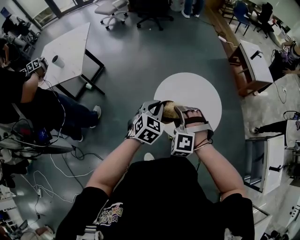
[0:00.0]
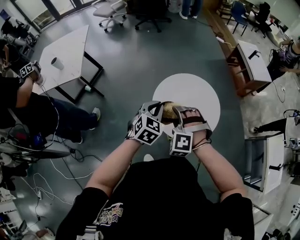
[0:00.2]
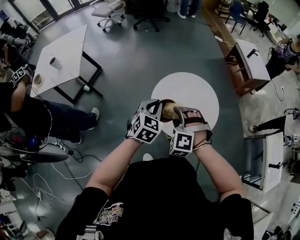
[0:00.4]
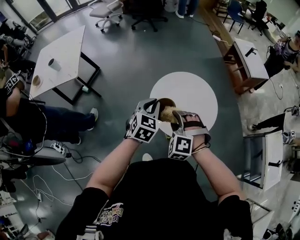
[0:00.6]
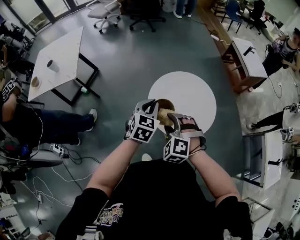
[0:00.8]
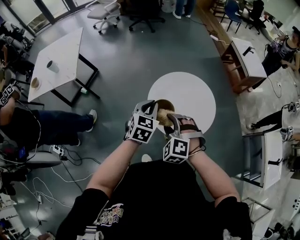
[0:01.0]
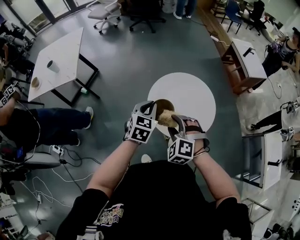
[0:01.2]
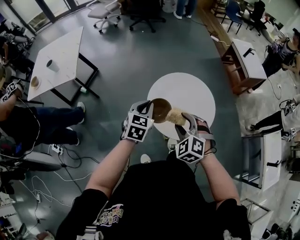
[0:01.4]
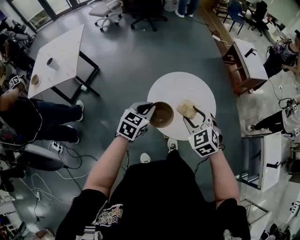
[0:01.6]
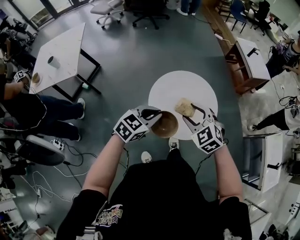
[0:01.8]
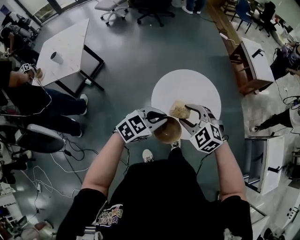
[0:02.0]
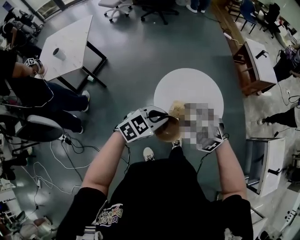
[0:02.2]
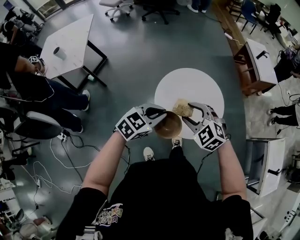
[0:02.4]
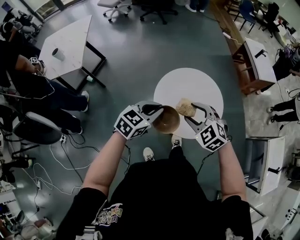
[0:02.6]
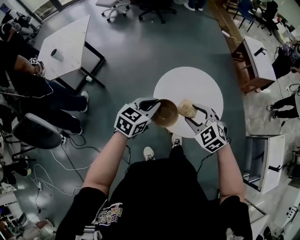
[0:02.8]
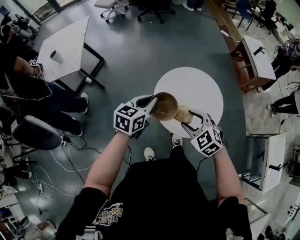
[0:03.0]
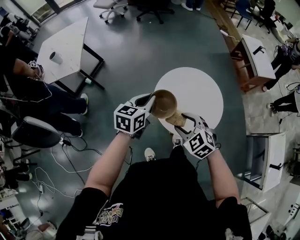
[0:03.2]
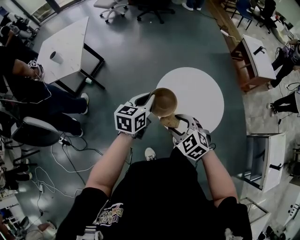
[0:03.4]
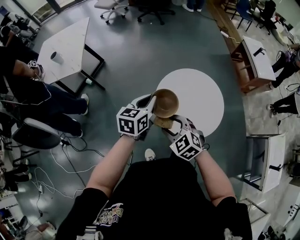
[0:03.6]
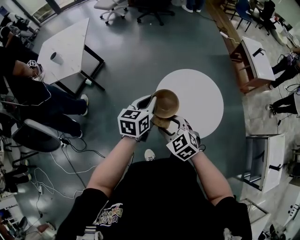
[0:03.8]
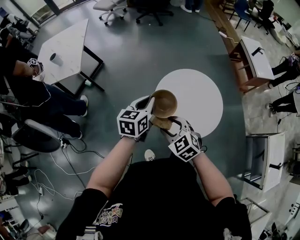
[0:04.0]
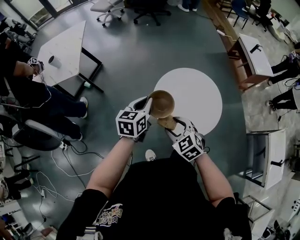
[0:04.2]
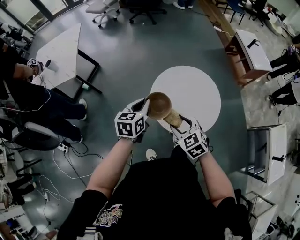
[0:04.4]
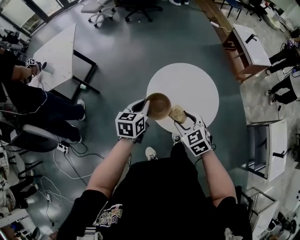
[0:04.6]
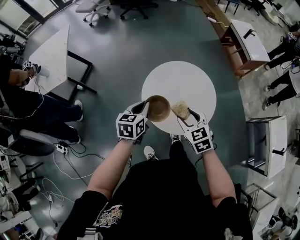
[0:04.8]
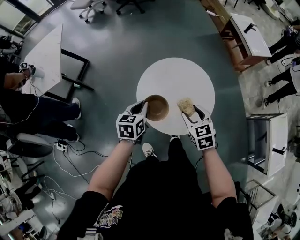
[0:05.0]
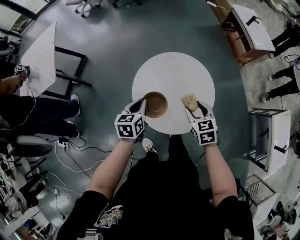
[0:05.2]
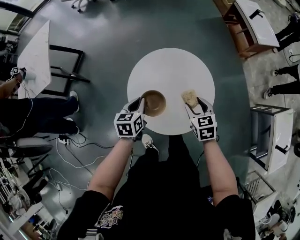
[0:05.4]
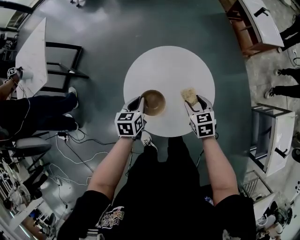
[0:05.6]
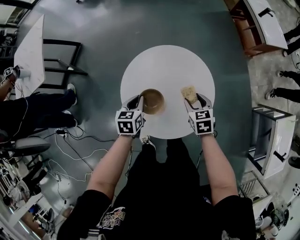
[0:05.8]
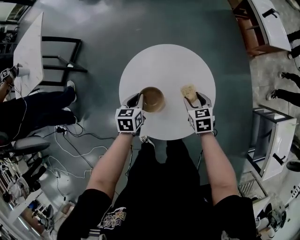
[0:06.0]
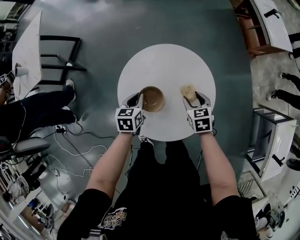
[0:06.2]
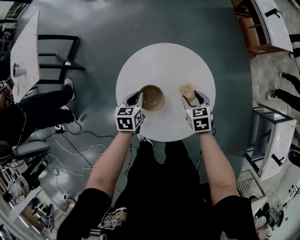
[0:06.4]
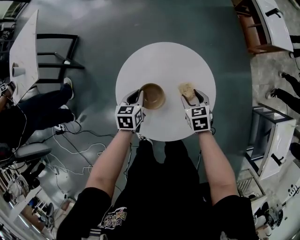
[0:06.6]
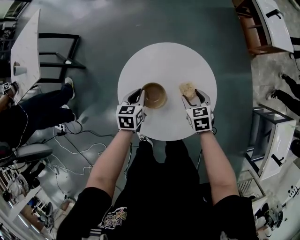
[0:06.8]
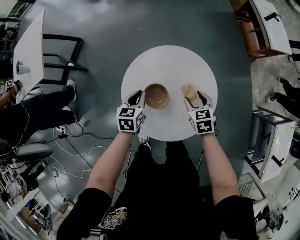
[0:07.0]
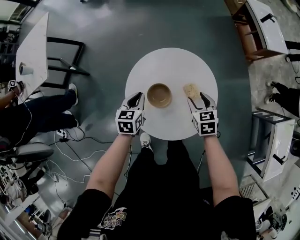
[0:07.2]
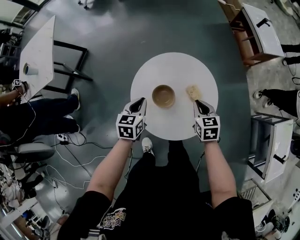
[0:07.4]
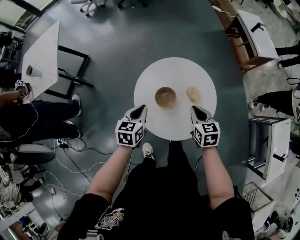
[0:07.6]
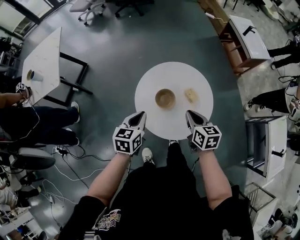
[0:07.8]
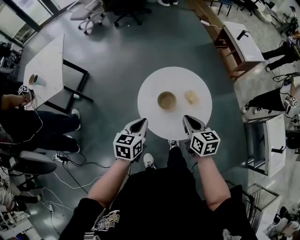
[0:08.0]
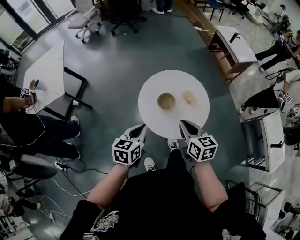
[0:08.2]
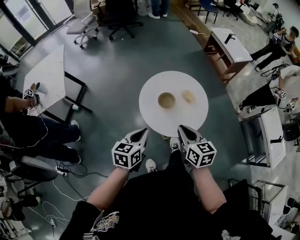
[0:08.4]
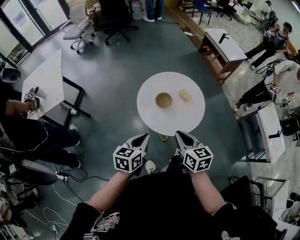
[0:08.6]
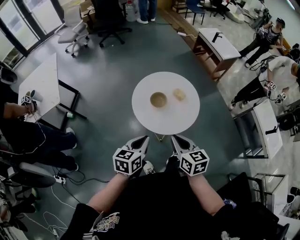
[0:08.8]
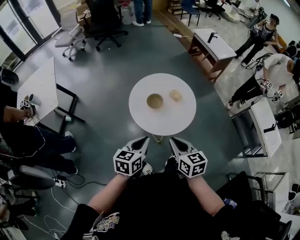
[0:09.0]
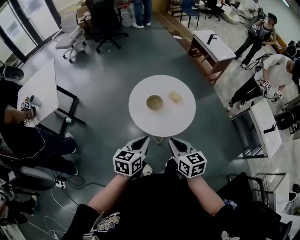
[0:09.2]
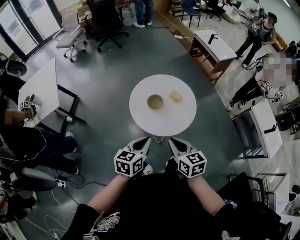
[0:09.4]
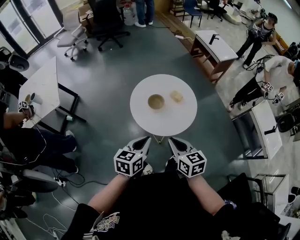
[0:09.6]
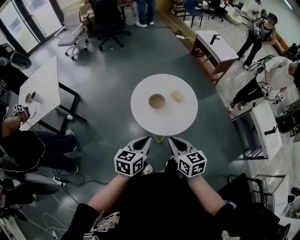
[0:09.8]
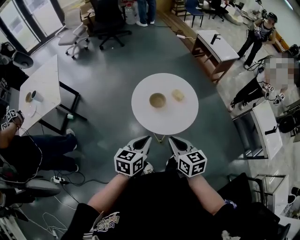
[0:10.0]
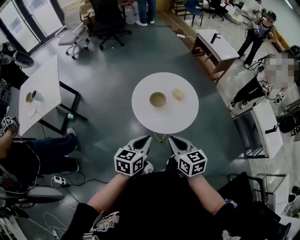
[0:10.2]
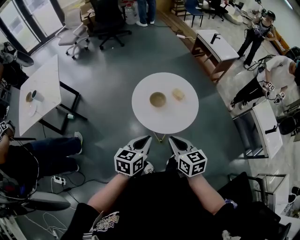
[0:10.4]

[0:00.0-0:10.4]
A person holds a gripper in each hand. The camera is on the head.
0:00.0 to 0:01.4: The right gripper shifts some 5 cm to the right, and rotates approximately 30 degrees.
0:01.4 to 0:03.0: The right gripper rotates approximately 20 degrees. The left gripper travels to the right and back again, about 5 cm each way, and swivels about 20 degrees.
0:03.0 to 0:04.4: The right gripper moves approximately 10 cm to the left and comes back.
0:04.4 to 0:06.0: The right gripper moves to the right, downward and forward, approximately 35 cm, and rotates some 30 degrees; the left gripper shifts some 25 cm downward and to the right, and changes its angle by approximately 20 degrees.
0:06.0 to 0:07.4: The grippers both shift upward by some 5 cm. The right gripper closes up.
0:07.4 to 0:09.0: The right gripper goes approximately 35 cm backward, upward and to the left, and rotates some 20 degrees; the left gripper goes some 30 cm backward and upward, and rotates some 20 degrees.
0:09.0 to 0:10.4: The grippers make only small movements.

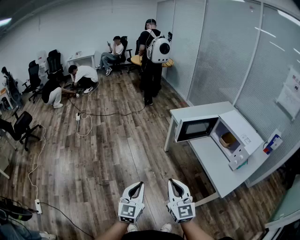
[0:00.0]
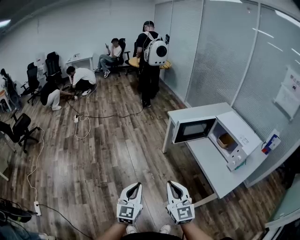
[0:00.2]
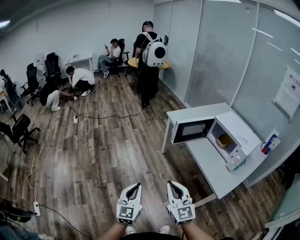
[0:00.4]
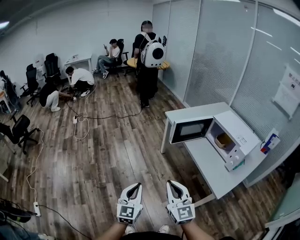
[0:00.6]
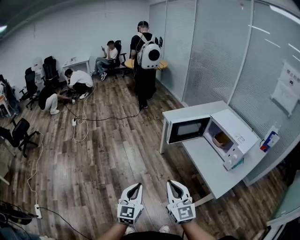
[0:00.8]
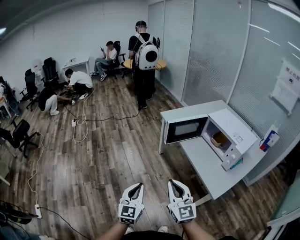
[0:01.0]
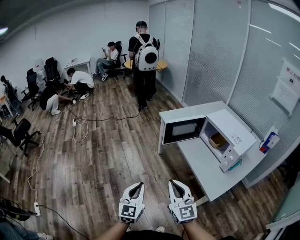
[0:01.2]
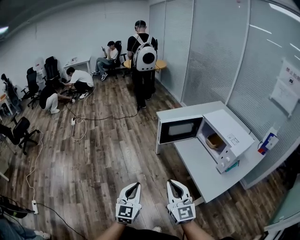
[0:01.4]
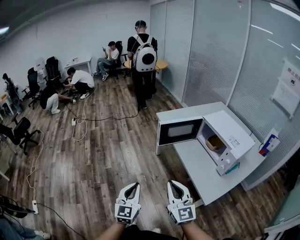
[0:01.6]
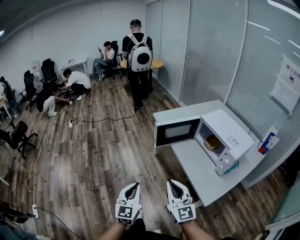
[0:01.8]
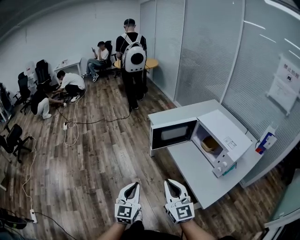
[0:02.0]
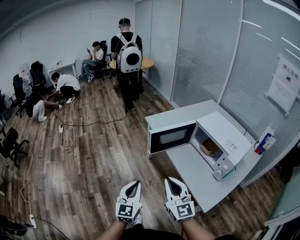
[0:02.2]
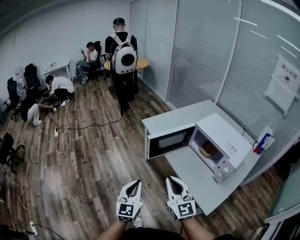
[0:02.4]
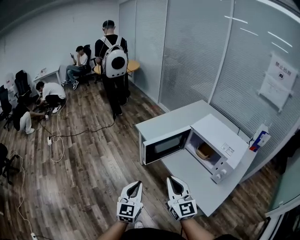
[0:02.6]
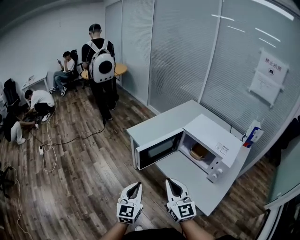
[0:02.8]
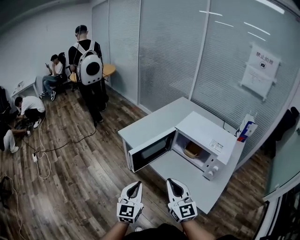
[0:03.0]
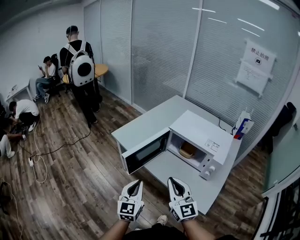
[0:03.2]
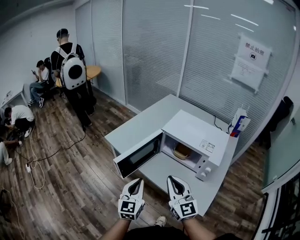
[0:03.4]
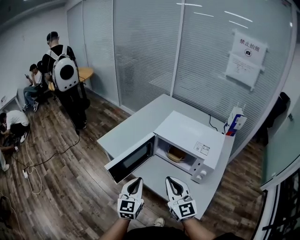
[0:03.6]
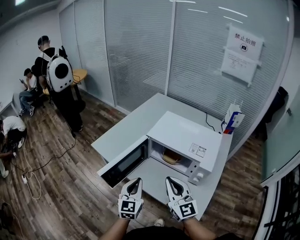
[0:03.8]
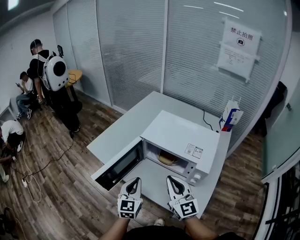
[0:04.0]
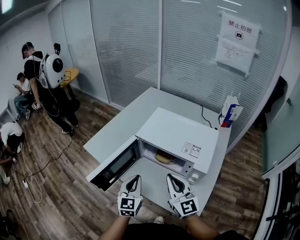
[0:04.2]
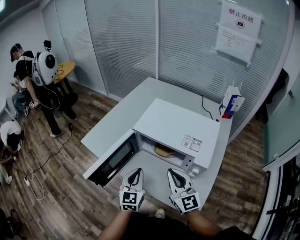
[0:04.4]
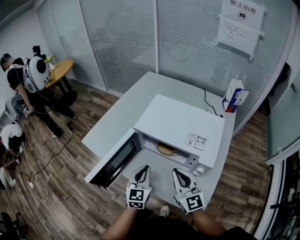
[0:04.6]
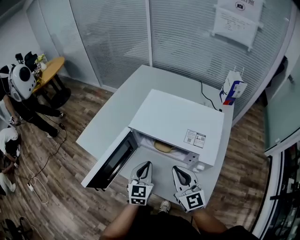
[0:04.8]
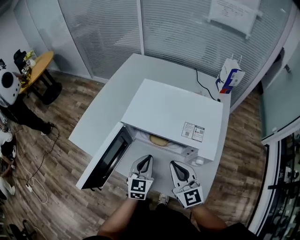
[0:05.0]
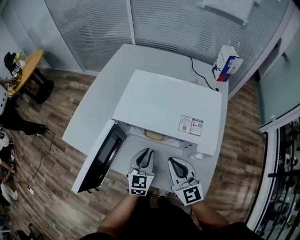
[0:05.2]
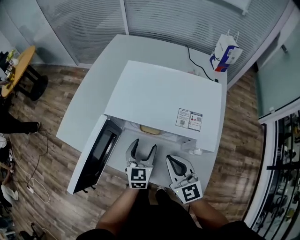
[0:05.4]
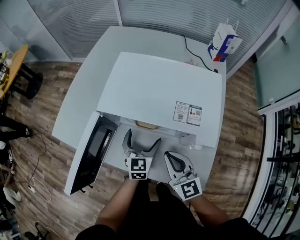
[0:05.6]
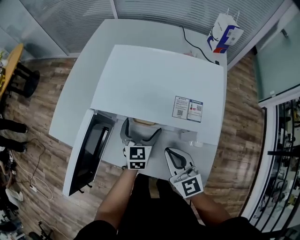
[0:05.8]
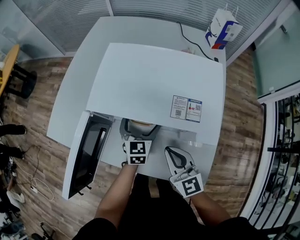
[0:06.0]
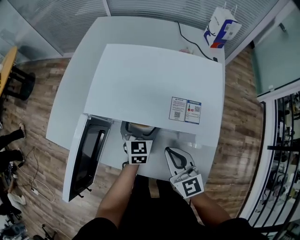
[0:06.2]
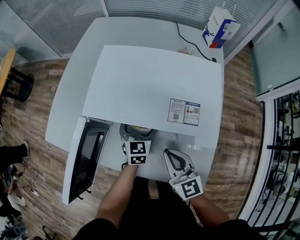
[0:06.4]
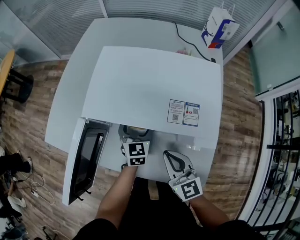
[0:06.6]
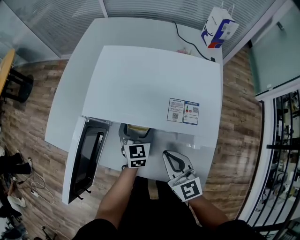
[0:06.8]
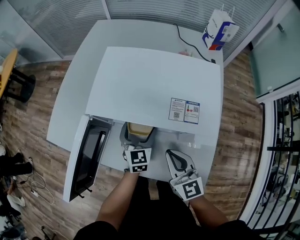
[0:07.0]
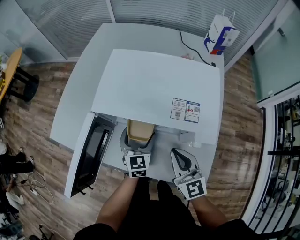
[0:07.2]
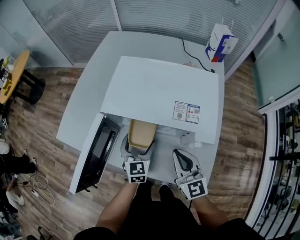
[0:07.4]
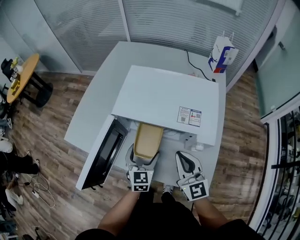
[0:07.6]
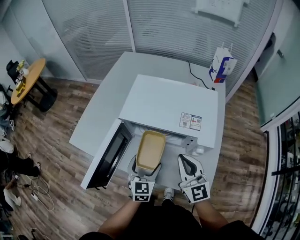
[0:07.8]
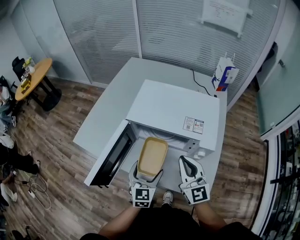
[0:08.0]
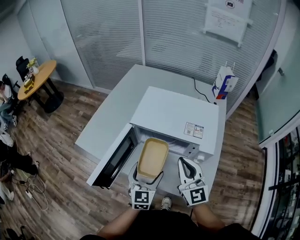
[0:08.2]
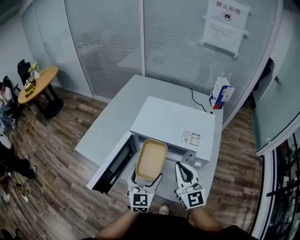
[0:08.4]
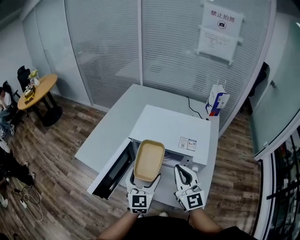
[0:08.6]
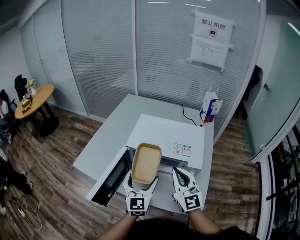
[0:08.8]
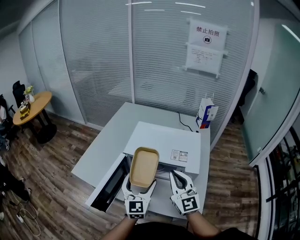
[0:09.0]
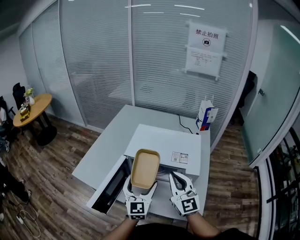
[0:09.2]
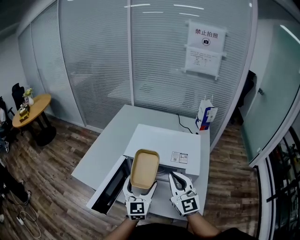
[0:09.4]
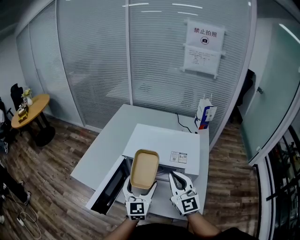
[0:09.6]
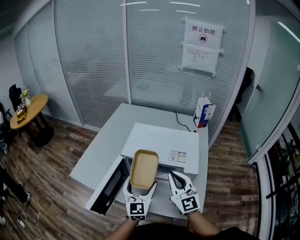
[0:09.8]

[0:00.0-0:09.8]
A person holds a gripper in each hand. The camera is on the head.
0:00.0 to 0:01.4: The two grippers go some 15 cm to the right.
0:01.4 to 0:02.8: Both grippers move forward, approximately 20 cm.
0:02.8 to 0:04.2: The left gripper shifts some 30 cm forward and to the right, while the right gripper shifts some 25 cm to the right and forward.
0:04.2 to 0:05.6: The left gripper heads forward, downward and to the right, covering about 20 cm, and opens its fingers, while the right gripper goes approximately 10 cm downward.
0:07.0 to 0:08.4: The right gripper shifts roughly 15 cm upward, and changes its angle by roughly 20 degrees; the left gripper shifts approximately 20 cm upward, backward and to the left.
0:08.4 to 0:09.8: The left gripper goes approximately 5 cm upward.

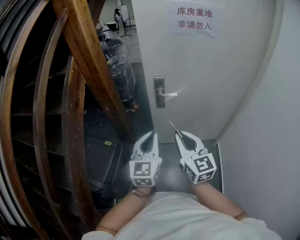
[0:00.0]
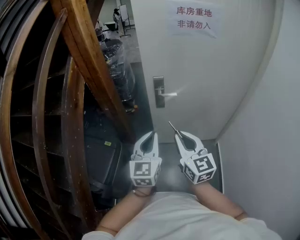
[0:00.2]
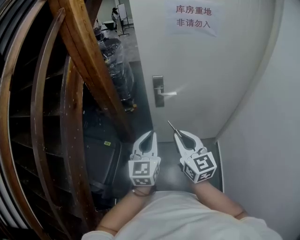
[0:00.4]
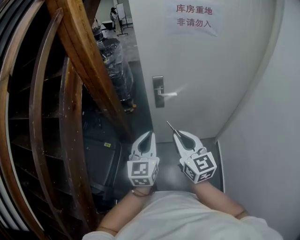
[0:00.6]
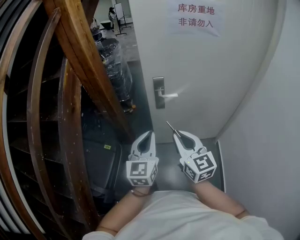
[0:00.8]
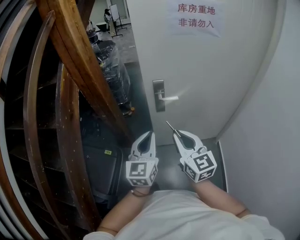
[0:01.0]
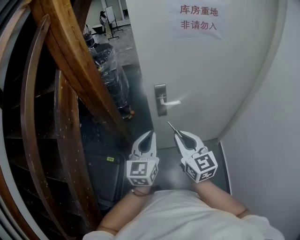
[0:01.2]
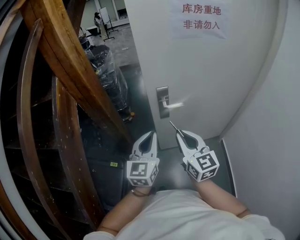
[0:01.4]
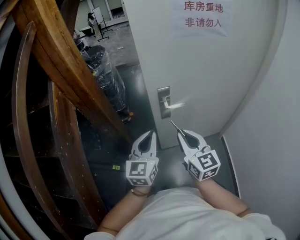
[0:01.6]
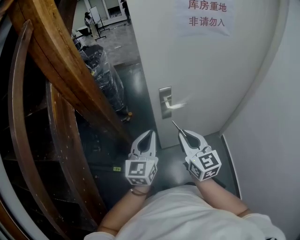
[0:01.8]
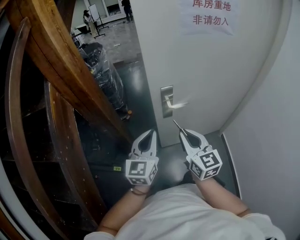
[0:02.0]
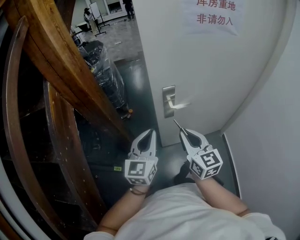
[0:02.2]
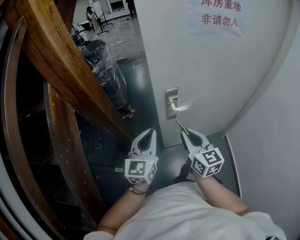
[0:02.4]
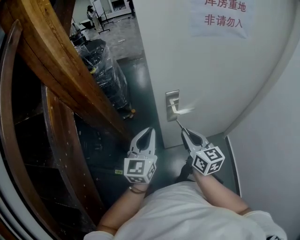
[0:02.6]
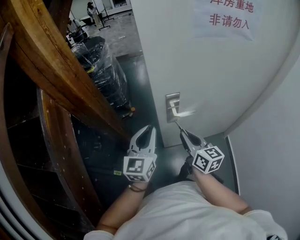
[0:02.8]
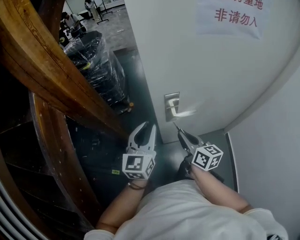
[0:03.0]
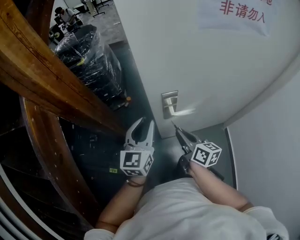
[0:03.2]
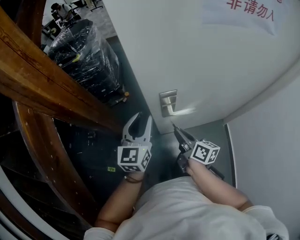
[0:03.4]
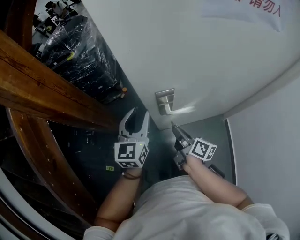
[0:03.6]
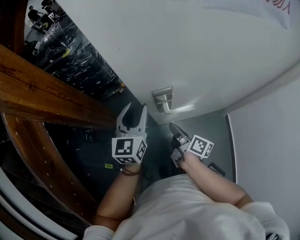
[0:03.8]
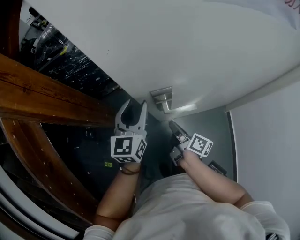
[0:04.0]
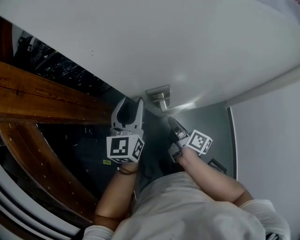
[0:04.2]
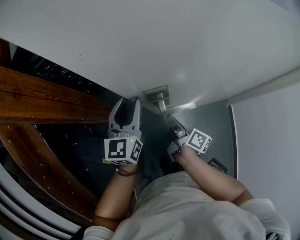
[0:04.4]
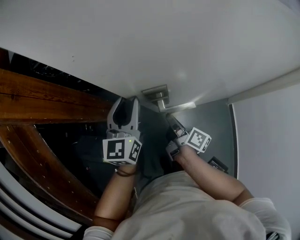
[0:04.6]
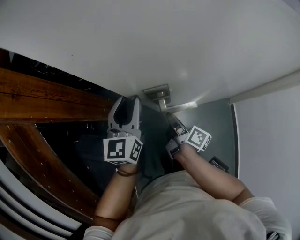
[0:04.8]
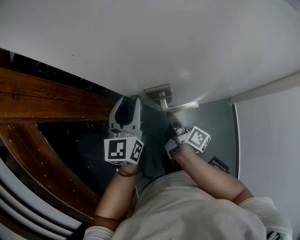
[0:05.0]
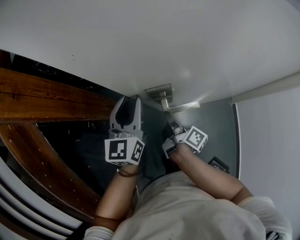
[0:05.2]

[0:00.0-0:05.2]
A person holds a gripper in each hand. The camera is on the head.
0:00.0 to 0:01.8: The right gripper goes roughly 20 cm forward. Meanwhile the left gripper travels forward and to the left by some 20 cm.
0:01.8 to 0:03.4: The left gripper shifts about 20 cm forward, and opens, while the right gripper travels downward and forward by roughly 25 cm, and twists approximately 50 degrees clockwise, seen from behind.
0:03.4 to 0:05.2: The right gripper travels downward and forward by approximately 10 cm, and rotates some 40 degrees; the left gripper goes some 5 cm forward.
